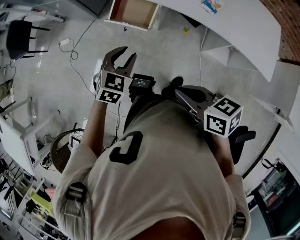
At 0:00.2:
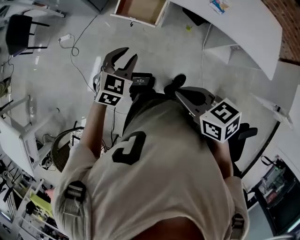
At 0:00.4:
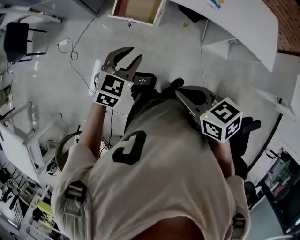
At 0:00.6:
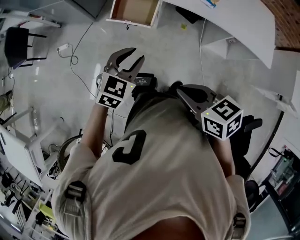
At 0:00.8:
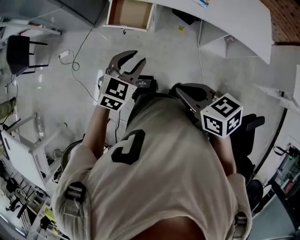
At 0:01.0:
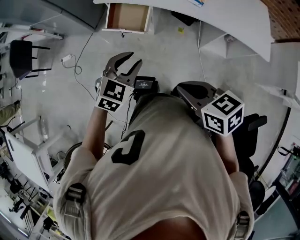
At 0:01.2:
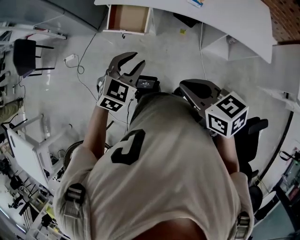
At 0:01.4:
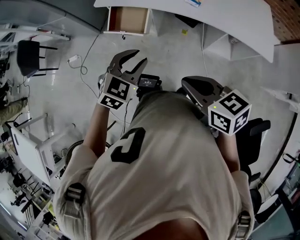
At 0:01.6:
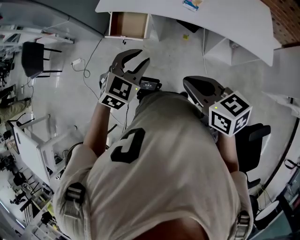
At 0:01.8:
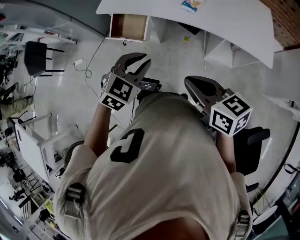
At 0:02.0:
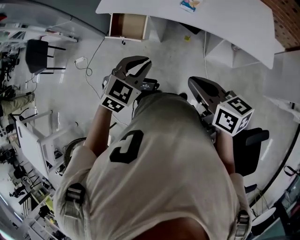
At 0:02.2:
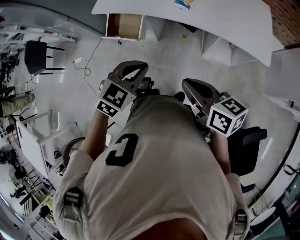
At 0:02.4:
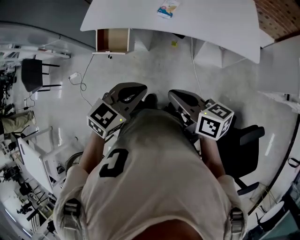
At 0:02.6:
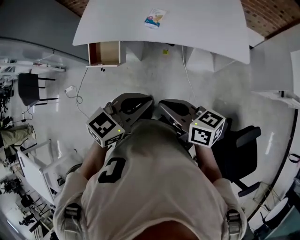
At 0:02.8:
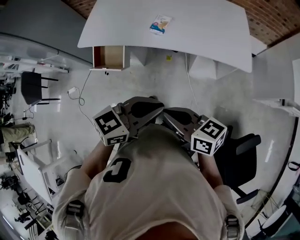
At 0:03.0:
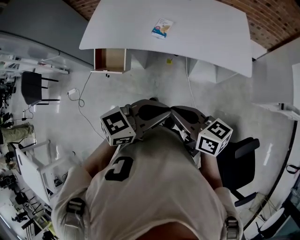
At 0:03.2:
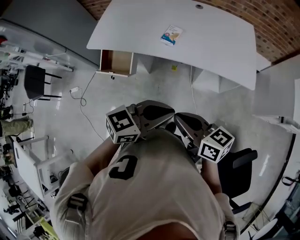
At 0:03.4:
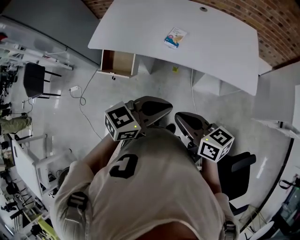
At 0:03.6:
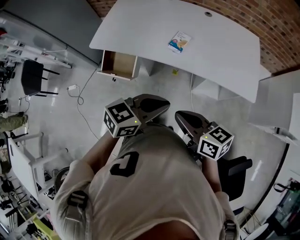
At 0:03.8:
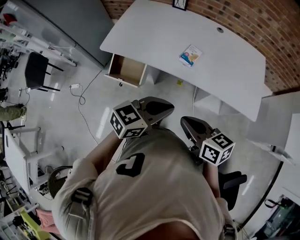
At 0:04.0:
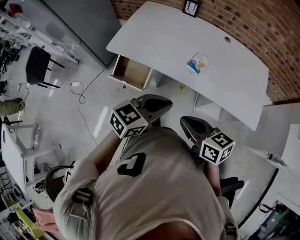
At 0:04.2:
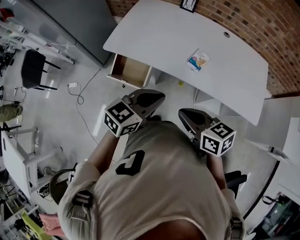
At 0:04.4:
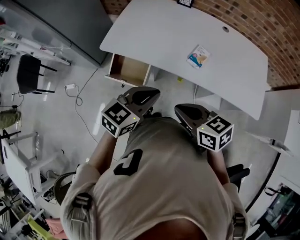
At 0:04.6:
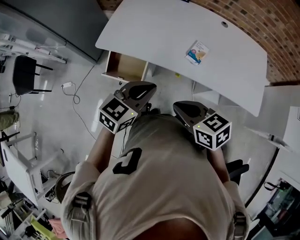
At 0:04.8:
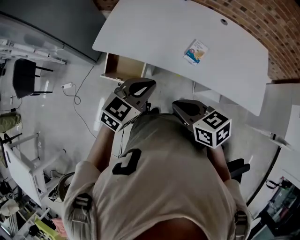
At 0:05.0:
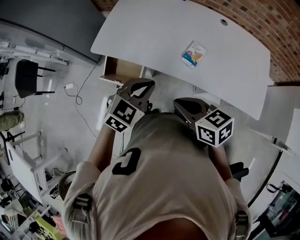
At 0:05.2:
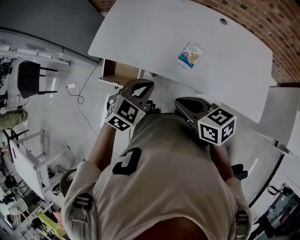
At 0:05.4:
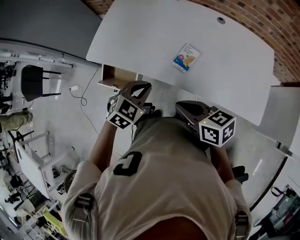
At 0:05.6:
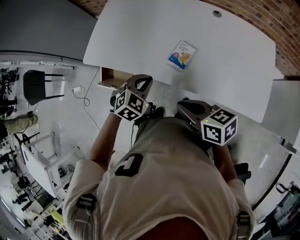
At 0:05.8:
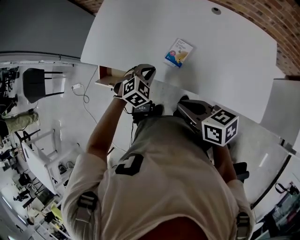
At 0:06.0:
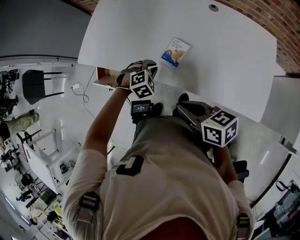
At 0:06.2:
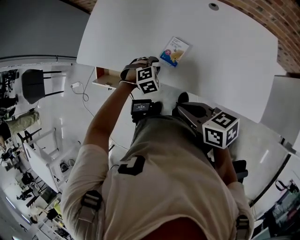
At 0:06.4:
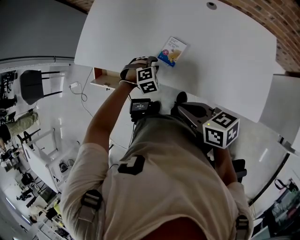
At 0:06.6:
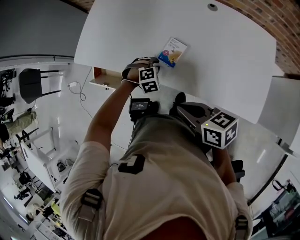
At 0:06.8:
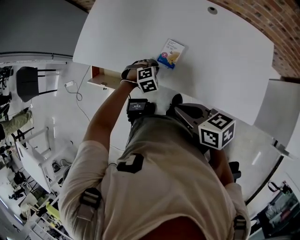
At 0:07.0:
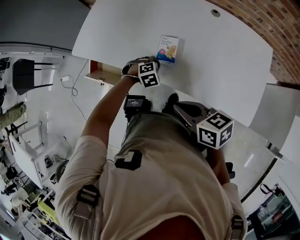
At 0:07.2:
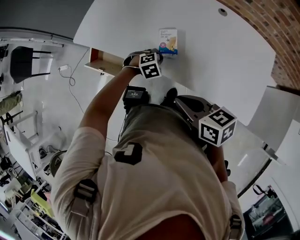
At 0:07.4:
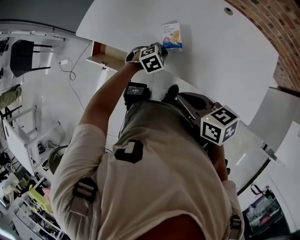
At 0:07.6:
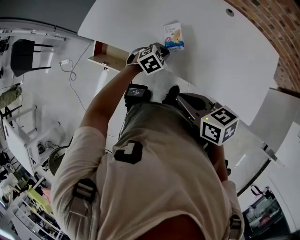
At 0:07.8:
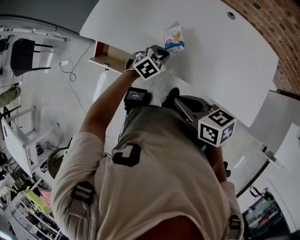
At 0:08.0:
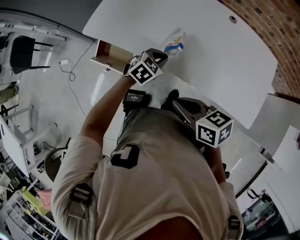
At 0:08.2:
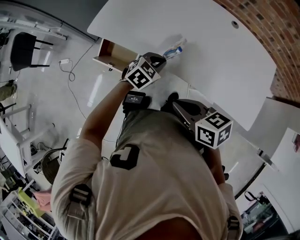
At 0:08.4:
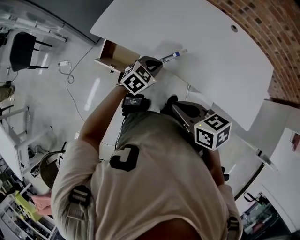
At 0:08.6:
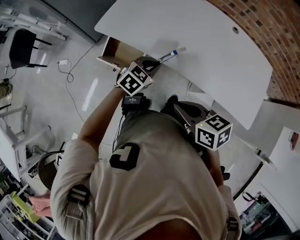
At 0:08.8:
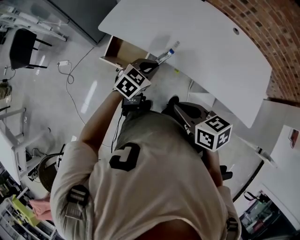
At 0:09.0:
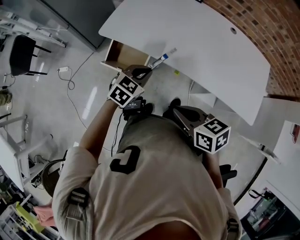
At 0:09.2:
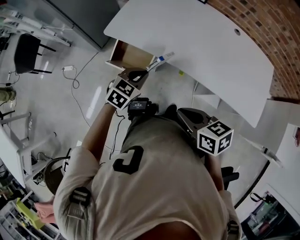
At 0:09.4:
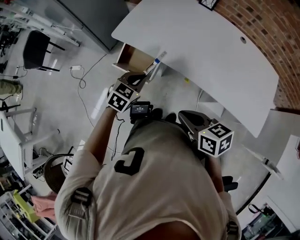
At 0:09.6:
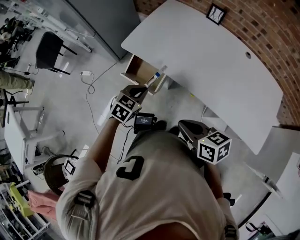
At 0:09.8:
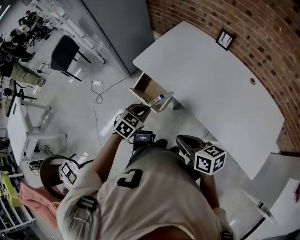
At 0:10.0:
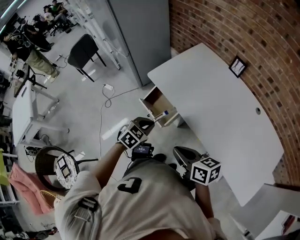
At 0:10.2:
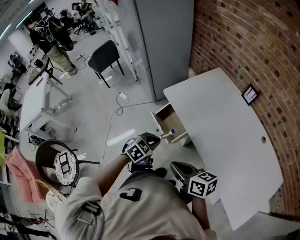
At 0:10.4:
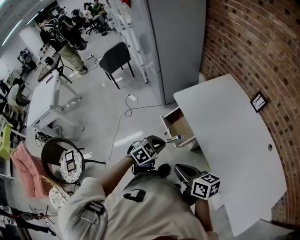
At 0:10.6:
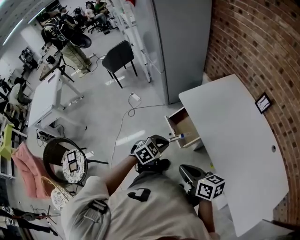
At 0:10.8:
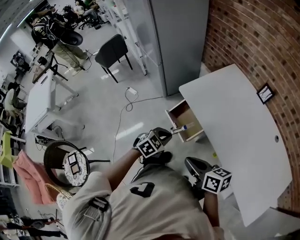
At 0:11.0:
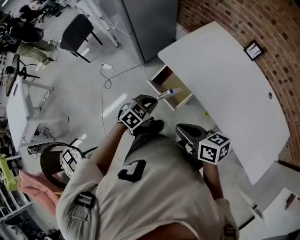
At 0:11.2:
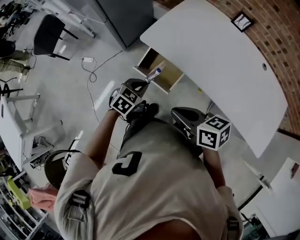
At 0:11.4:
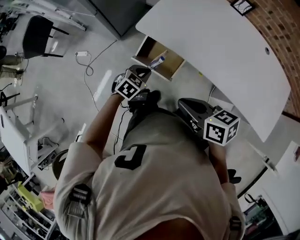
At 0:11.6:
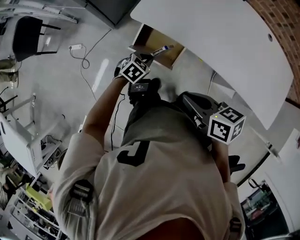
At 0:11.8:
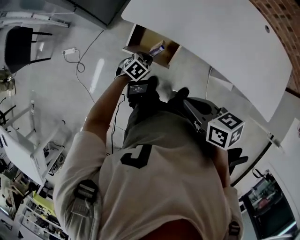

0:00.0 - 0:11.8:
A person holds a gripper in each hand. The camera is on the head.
0:00.0 - 0:01.4: The right gripper shifts by about 5 cm. Meanwhile the left gripper heads to the right, upward and backward, covering about 10 cm.
0:01.4 - 0:03.0: The right gripper shifts roughly 15 cm to the right, and swivels some 20 degrees, while the left gripper is displaced to the right by about 25 cm, rotates approximately 50 degrees, and closes up.
0:03.0 - 0:04.4: Both grippers move to the left and forward, about 30 cm. The left gripper rotates roughly 30 degrees, while the right gripper swivels approximately 30 degrees.
0:04.4 - 0:06.0: The left gripper heads downward, to the right and forward, covering some 35 cm, and angles its fingers downward, by roughly 40 degrees. The right gripper shifts approximately 20 cm to the right.
0:06.0 - 0:07.4: The grippers stay close to where they were, moving slightly.
0:07.4 - 0:08.8: The left gripper shifts some 25 cm to the left and upward, and changes its angle by about 30 degrees, while the right gripper heads to the left, covering approximately 15 cm.
0:08.8 - 0:10.4: The right gripper shifts by about 5 cm, and rotates about 30 degrees. Meanwhile the left gripper changes place by approximately 15 cm, and rotates about 30 degrees.
0:10.4 - 0:11.8: The right gripper shifts by some 15 cm, and rotates approximately 40 degrees. The left gripper travels downward by about 25 cm, and swivels about 30 degrees.

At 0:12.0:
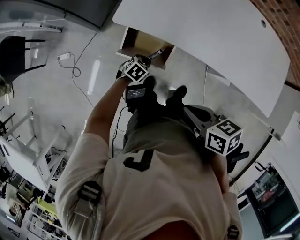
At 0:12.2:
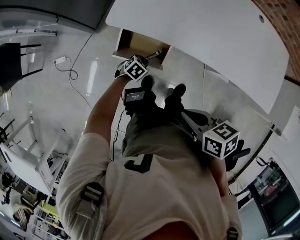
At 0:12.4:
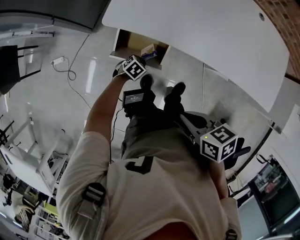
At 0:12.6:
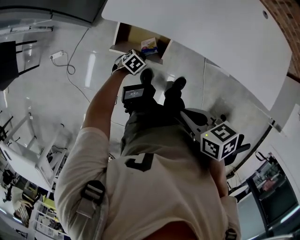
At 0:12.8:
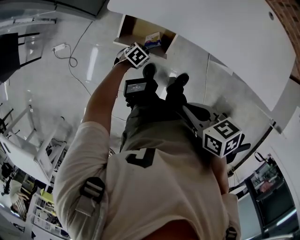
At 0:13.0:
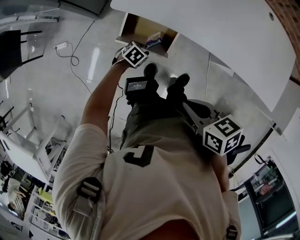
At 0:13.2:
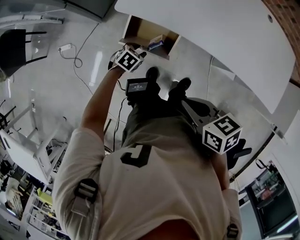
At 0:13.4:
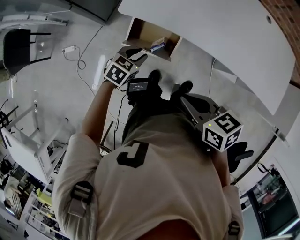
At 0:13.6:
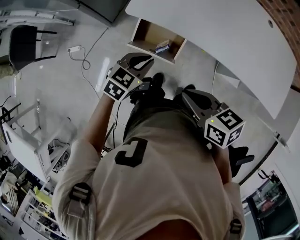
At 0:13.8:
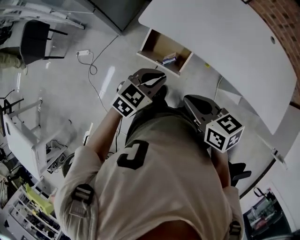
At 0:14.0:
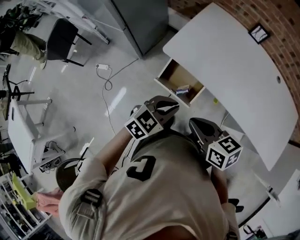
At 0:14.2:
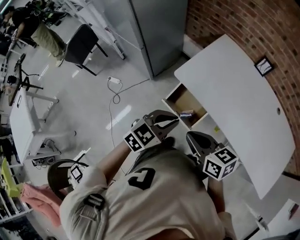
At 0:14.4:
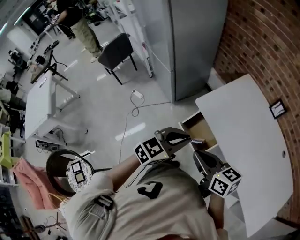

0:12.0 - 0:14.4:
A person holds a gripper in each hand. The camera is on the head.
0:12.0 - 0:13.2: The left gripper moves some 5 cm downward and comes back, and opens up.
0:13.2 - 0:14.4: The right gripper heads upward, covering some 10 cm, and rotates roughly 30 degrees, while the left gripper moves upward, roughly 40 cm, points its fingers approximately 40 degrees further upward, and closes up.

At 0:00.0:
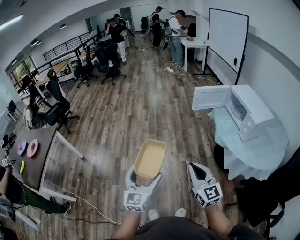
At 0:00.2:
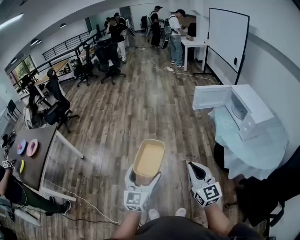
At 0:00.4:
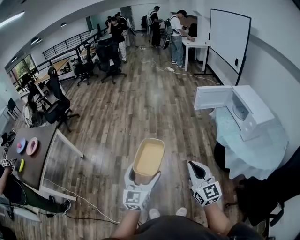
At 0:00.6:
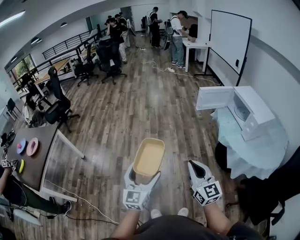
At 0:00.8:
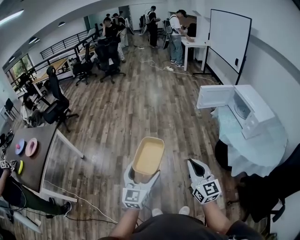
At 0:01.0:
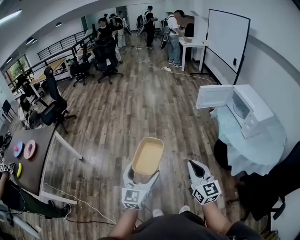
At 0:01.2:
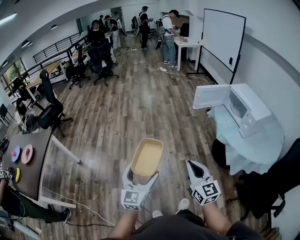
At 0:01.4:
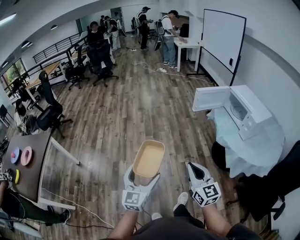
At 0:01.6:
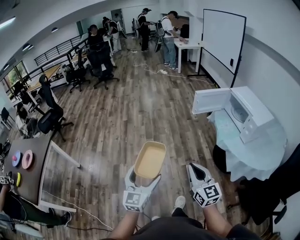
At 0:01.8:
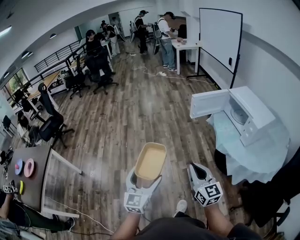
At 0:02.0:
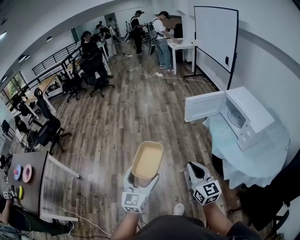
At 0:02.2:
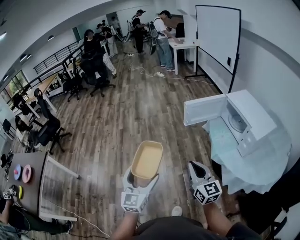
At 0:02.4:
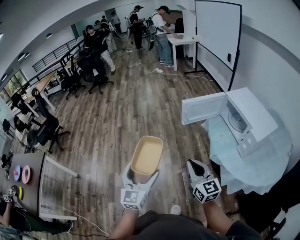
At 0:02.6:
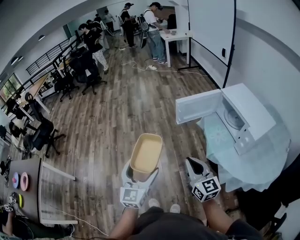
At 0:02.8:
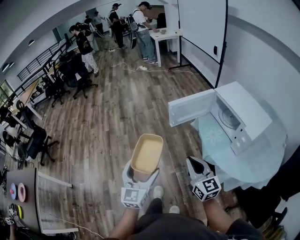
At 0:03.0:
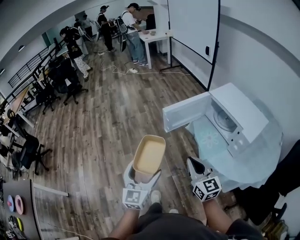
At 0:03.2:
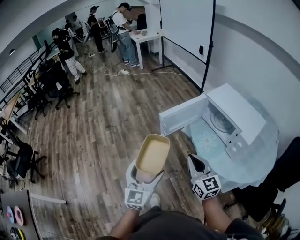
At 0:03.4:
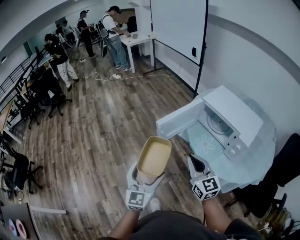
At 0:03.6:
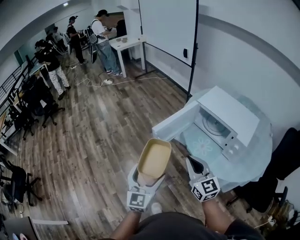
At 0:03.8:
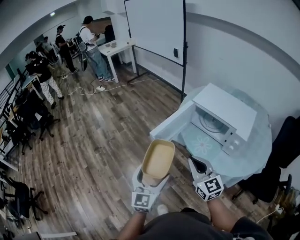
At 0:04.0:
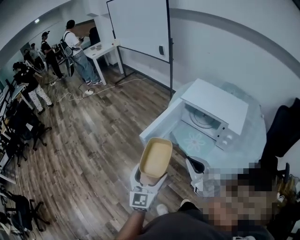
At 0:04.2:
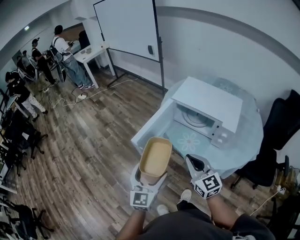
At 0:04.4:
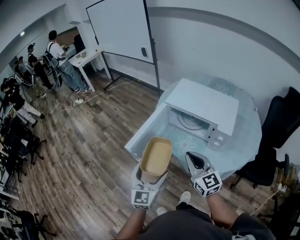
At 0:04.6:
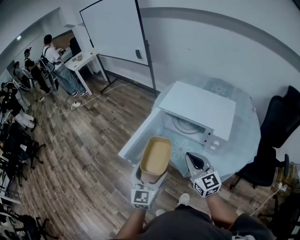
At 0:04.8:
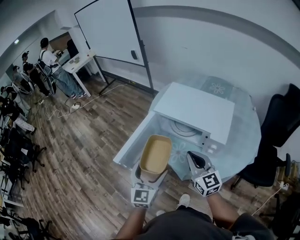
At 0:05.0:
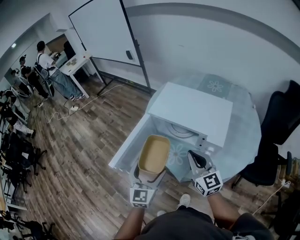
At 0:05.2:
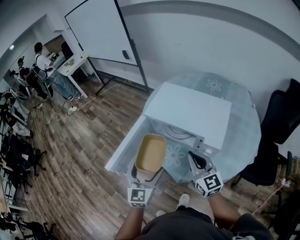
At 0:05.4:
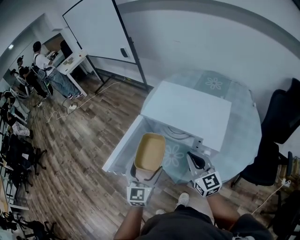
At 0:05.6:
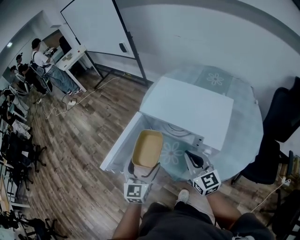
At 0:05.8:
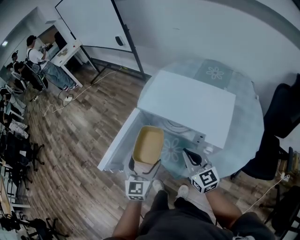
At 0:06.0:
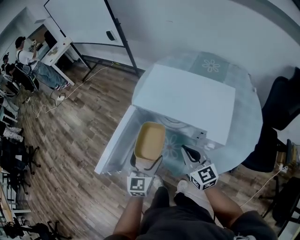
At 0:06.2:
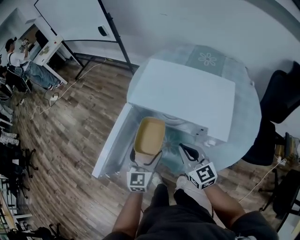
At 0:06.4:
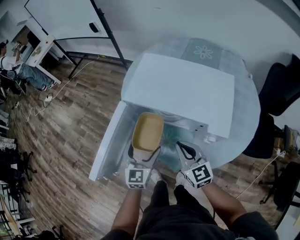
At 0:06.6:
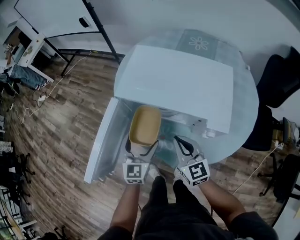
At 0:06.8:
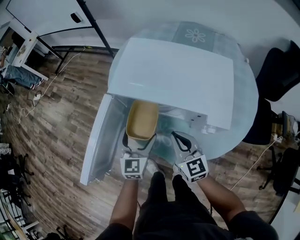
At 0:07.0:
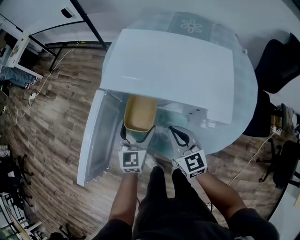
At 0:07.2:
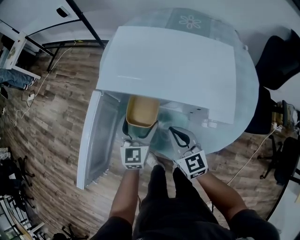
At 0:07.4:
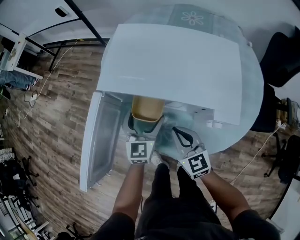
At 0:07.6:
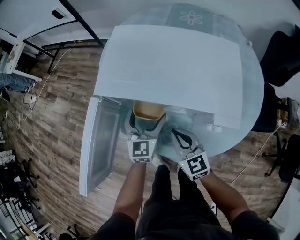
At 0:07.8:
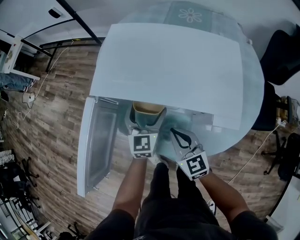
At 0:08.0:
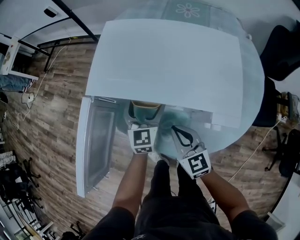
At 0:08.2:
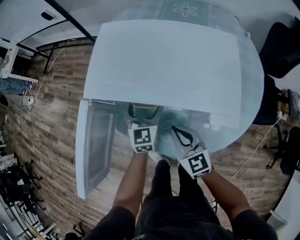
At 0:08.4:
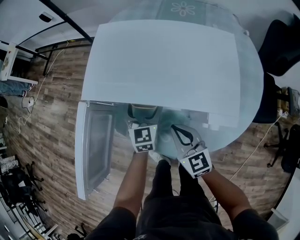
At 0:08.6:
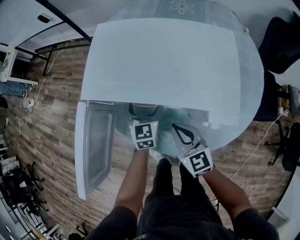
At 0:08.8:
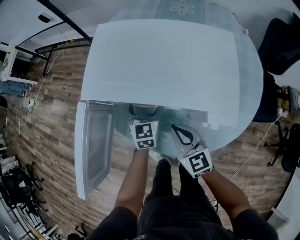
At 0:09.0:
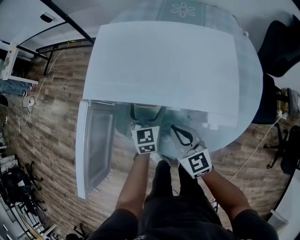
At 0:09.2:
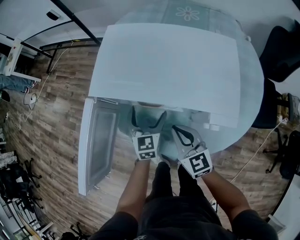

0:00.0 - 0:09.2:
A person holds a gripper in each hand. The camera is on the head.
0:00.0 - 0:01.6: Both grippers travel together forward, some 5 cm.
0:01.6 - 0:03.0: The grippers both shift forward and to the right by about 35 cm.
0:03.0 - 0:04.6: The left gripper shifts by about 30 cm, and changes its angle by some 30 degrees. The right gripper changes place by approximately 20 cm, and turns by roughly 30 degrees.
0:04.6 - 0:06.2: Both grippers travel together forward, downward and to the right, roughly 20 cm.
0:06.2 - 0:07.6: The right gripper goes about 10 cm downward. The left gripper goes roughly 15 cm forward, downward and to the right.
